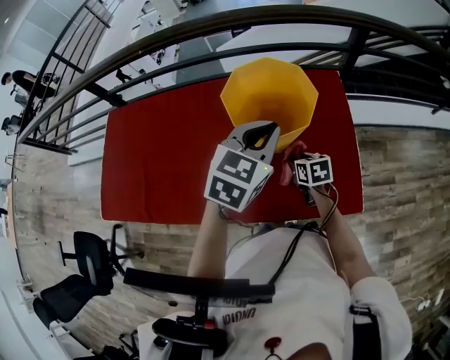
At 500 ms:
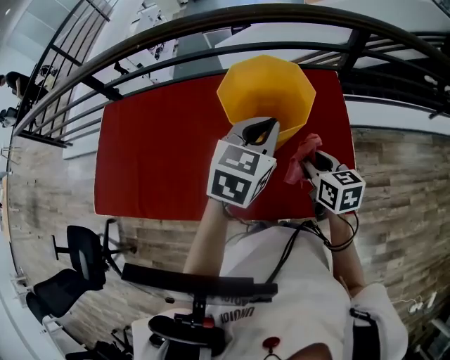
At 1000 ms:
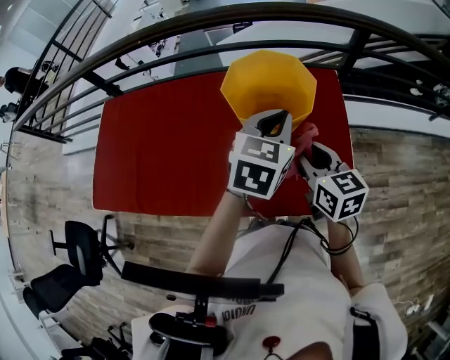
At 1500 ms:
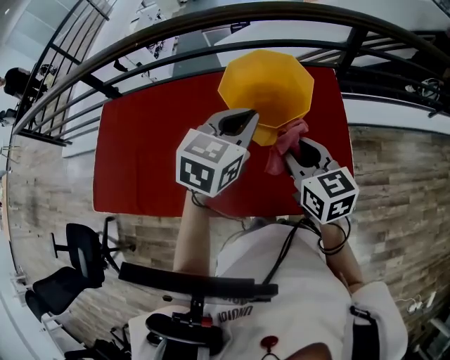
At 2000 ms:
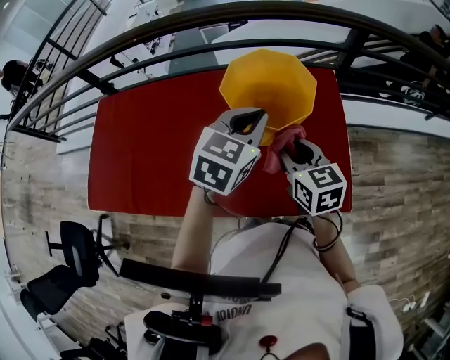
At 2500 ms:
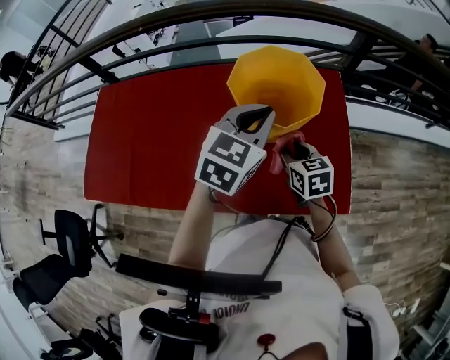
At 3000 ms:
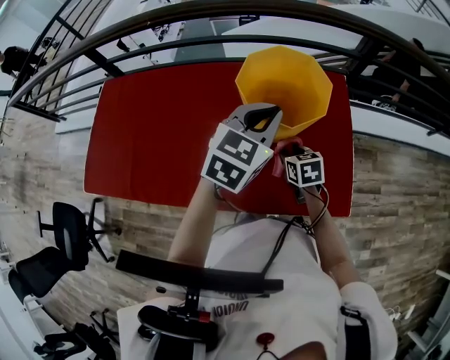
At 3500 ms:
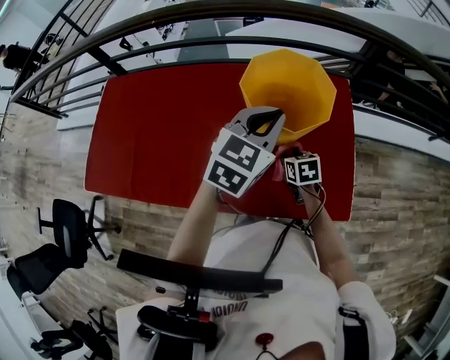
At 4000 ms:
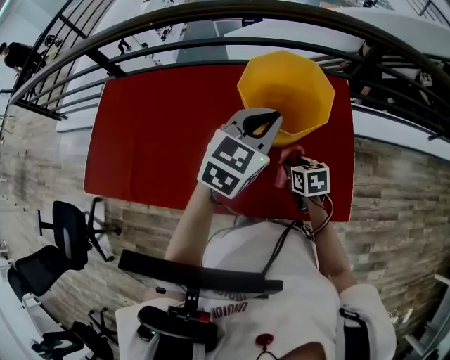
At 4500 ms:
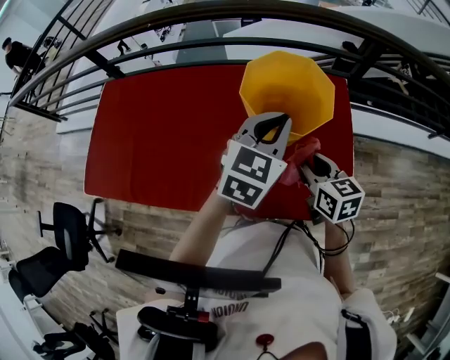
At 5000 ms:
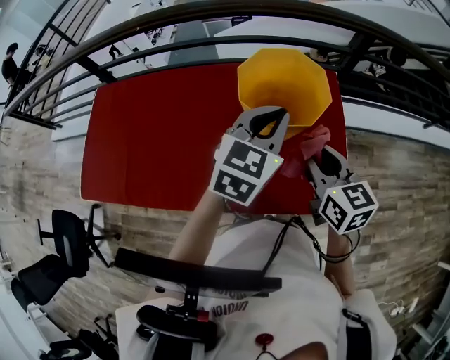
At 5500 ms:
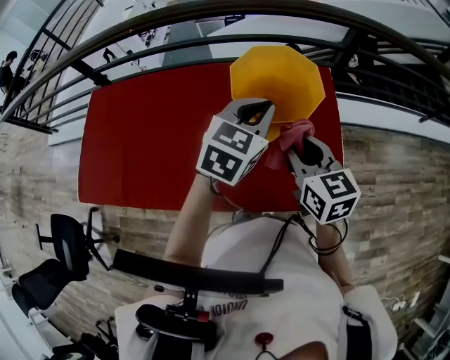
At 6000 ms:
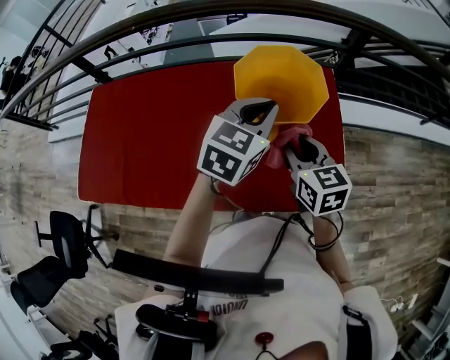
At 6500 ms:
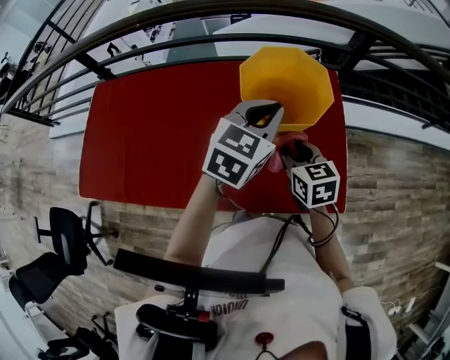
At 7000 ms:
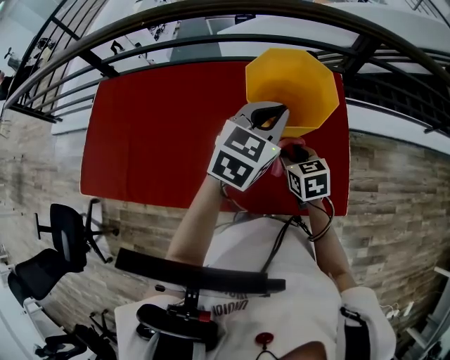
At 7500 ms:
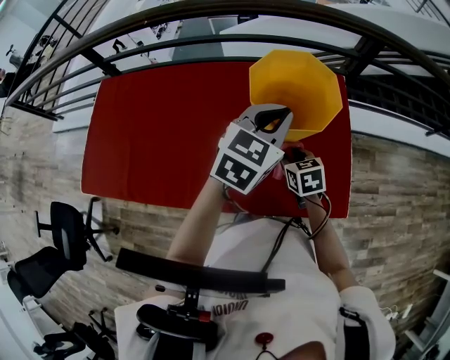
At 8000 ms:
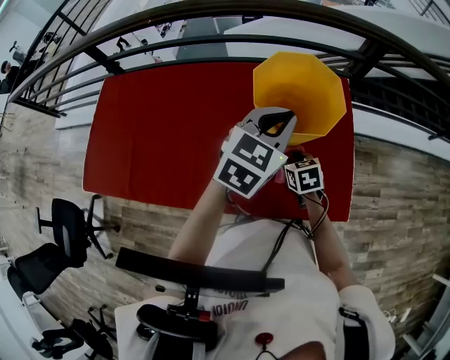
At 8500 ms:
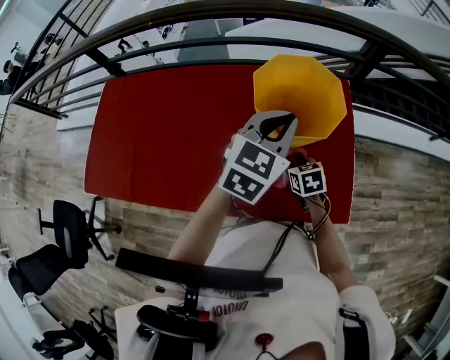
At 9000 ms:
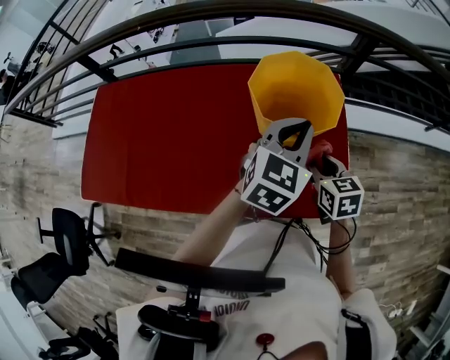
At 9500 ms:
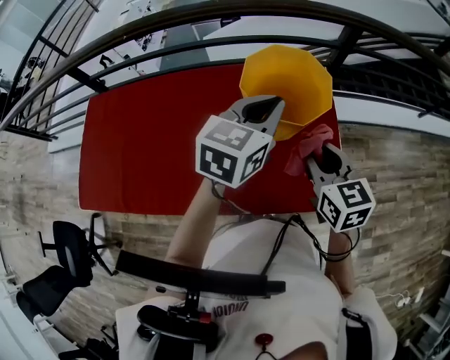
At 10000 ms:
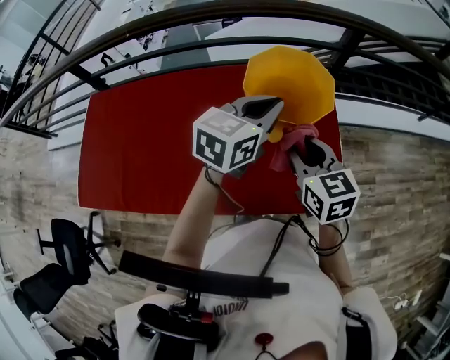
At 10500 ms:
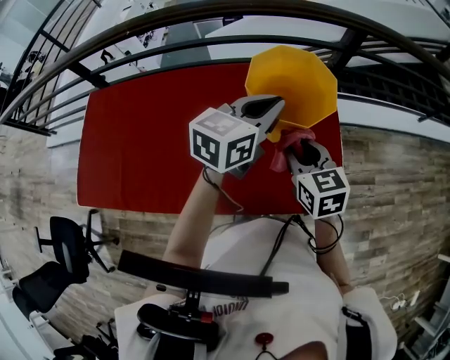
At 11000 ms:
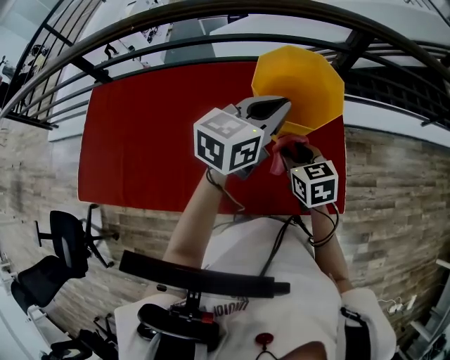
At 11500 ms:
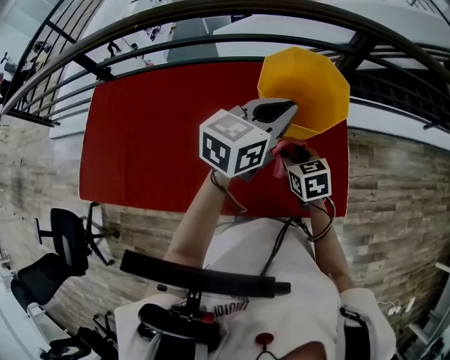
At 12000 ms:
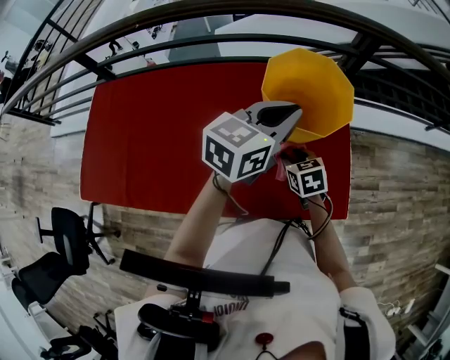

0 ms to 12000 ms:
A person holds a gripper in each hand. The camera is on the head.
0 ms to 2000 ms: The right gripper moves upward, about 20 cm, and changes its angle by approximately 30 degrees.
2000 ms to 4000 ms: The right gripper shifts some 20 cm downward, and swivels about 20 degrees.
4000 ms to 6000 ms: The right gripper goes some 20 cm upward, and turns by some 30 degrees.
6000 ms to 8000 ms: The right gripper is displaced downward by about 20 cm, and rotates about 30 degrees.
8000 ms to 10000 ms: The right gripper heads upward, covering roughly 20 cm, and rotates some 30 degrees.
10000 ms to 12000 ms: The right gripper shifts approximately 20 cm downward, and changes its angle by some 20 degrees.

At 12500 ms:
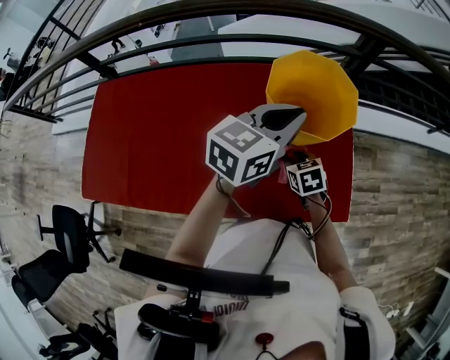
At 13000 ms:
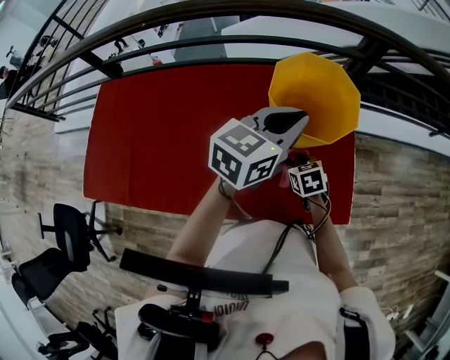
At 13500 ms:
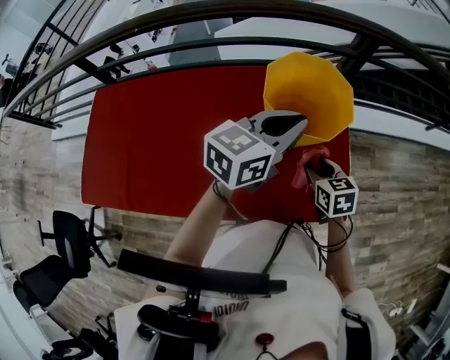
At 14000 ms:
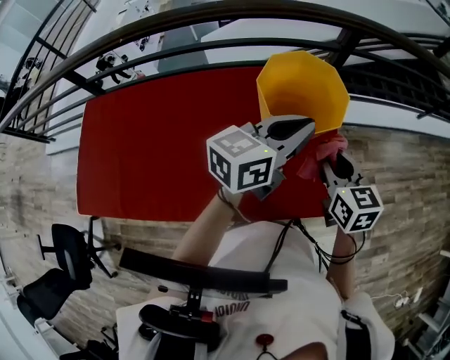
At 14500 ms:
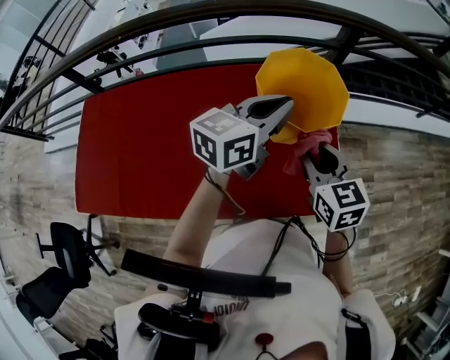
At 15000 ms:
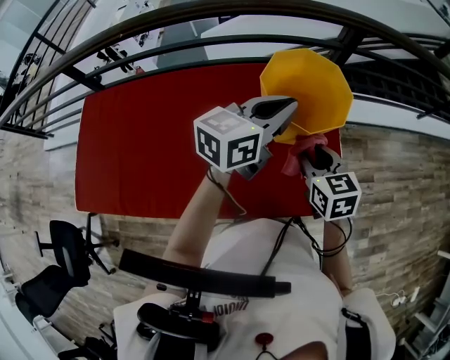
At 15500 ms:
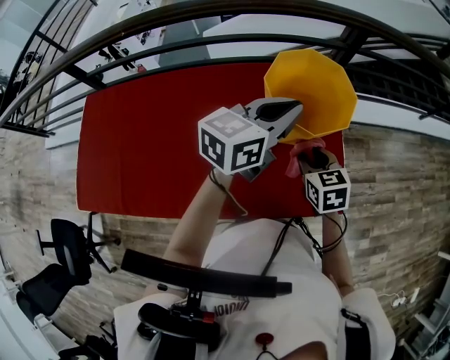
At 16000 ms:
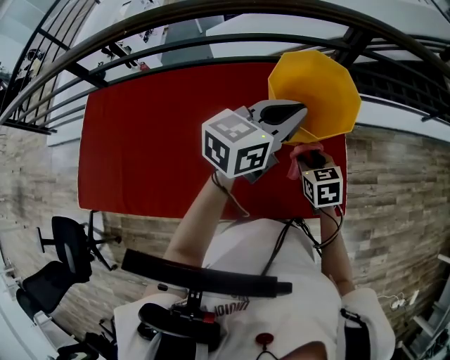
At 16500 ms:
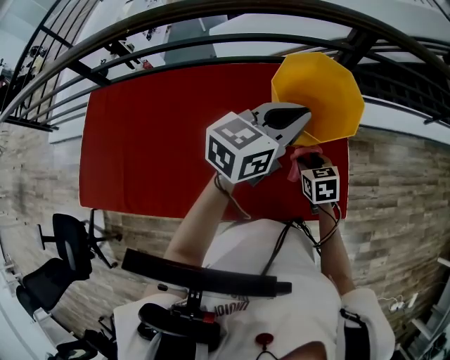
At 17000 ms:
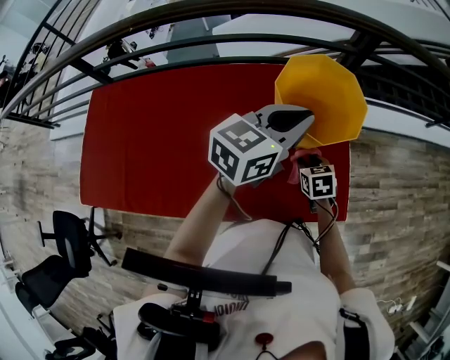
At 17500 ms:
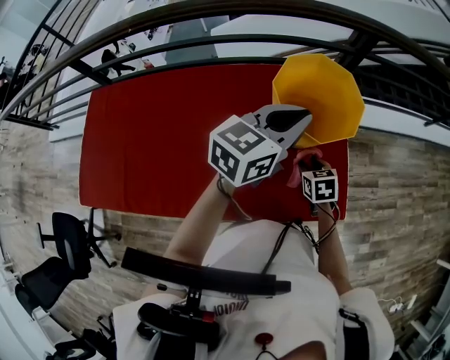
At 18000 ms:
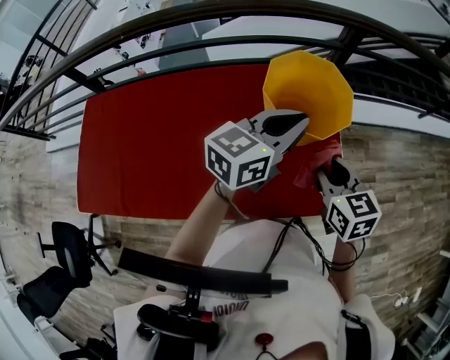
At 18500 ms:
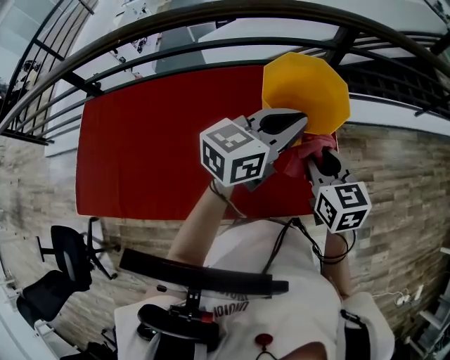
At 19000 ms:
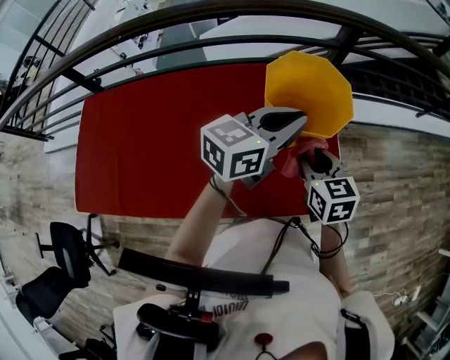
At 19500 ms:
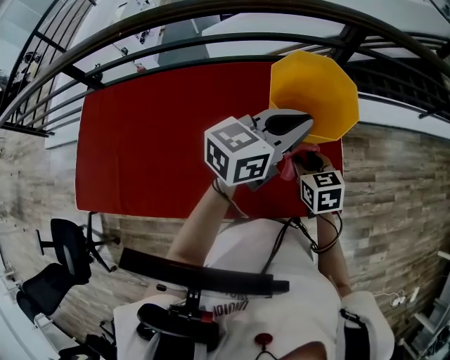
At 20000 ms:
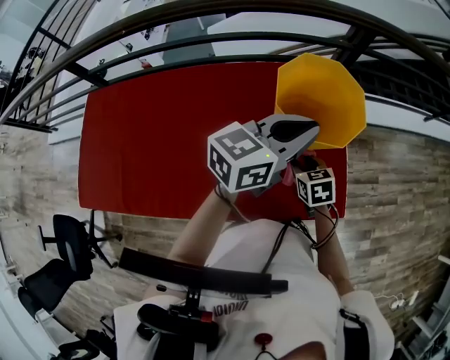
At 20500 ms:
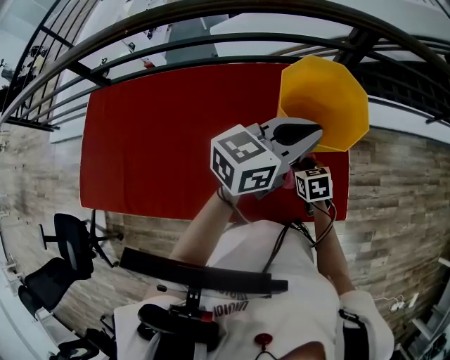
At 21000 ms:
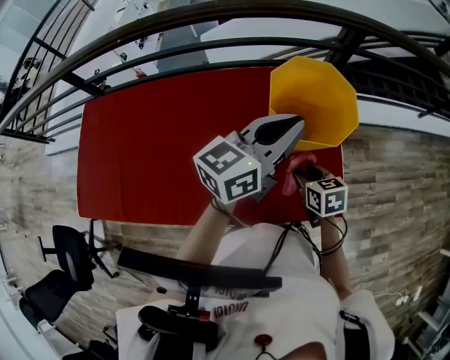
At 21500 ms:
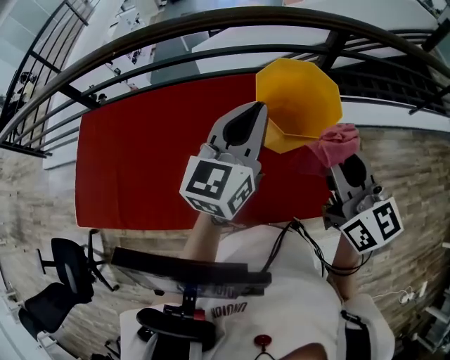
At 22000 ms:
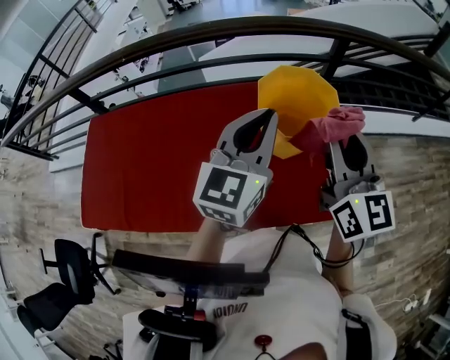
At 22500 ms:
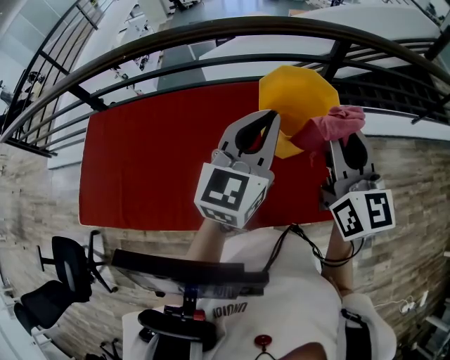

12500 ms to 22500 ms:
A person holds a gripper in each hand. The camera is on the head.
12500 ms to 14500 ms: The right gripper is displaced upward by approximately 20 cm, and rotates roughly 30 degrees.
14500 ms to 16500 ms: The right gripper moves downward, approximately 15 cm, and swivels approximately 20 degrees.
16500 ms to 18500 ms: The right gripper shifts roughly 15 cm upward, and rotates about 20 degrees.
18500 ms to 20500 ms: The right gripper is displaced downward by about 20 cm, and changes its angle by some 30 degrees.
20500 ms to 22500 ms: The right gripper shifts roughly 40 cm upward, and points its fingers some 60 degrees further upward. Meanwhile the left gripper moves upward, roughly 5 cm, and swivels some 40 degrees.

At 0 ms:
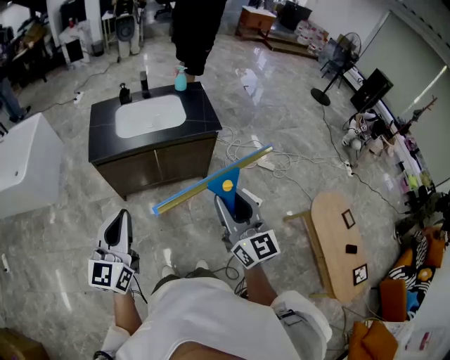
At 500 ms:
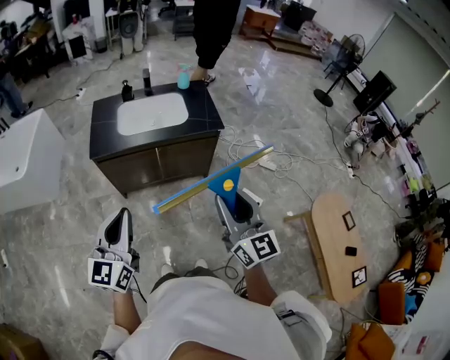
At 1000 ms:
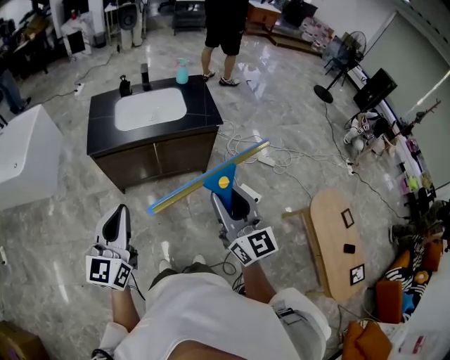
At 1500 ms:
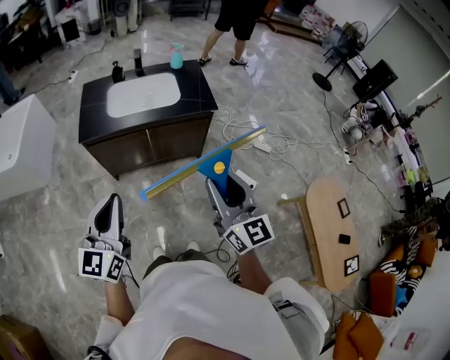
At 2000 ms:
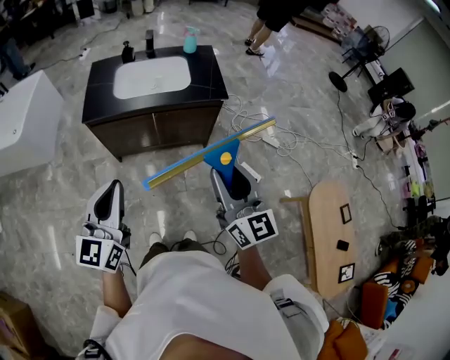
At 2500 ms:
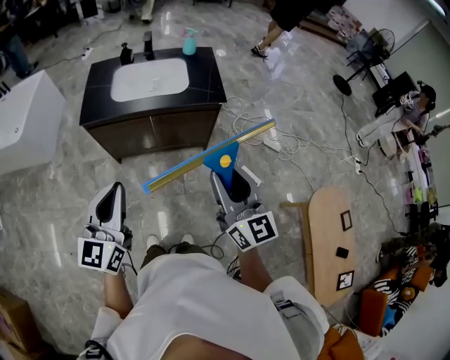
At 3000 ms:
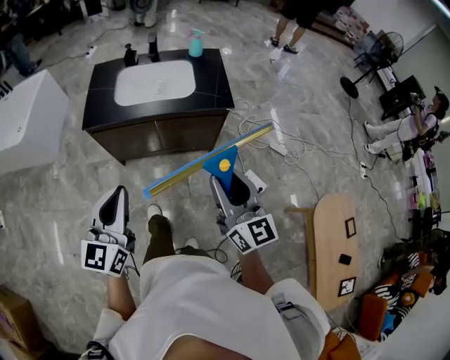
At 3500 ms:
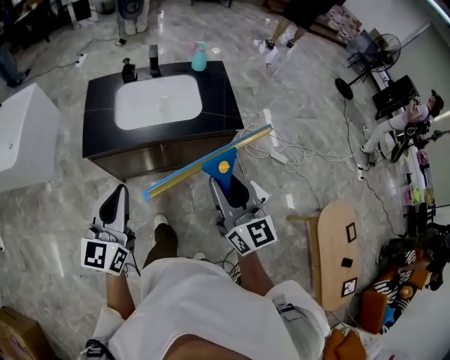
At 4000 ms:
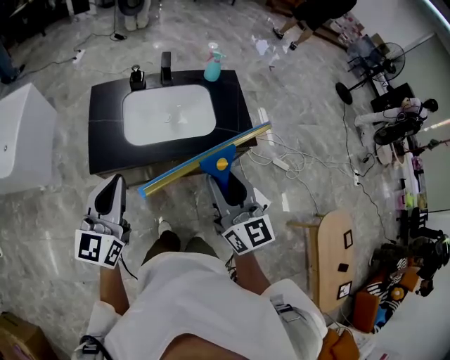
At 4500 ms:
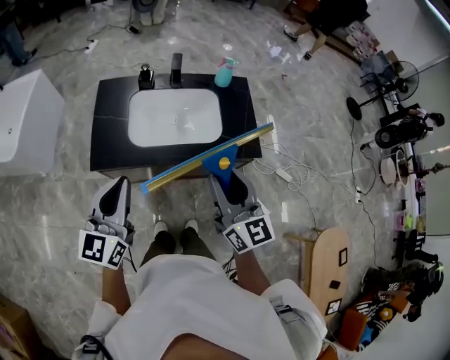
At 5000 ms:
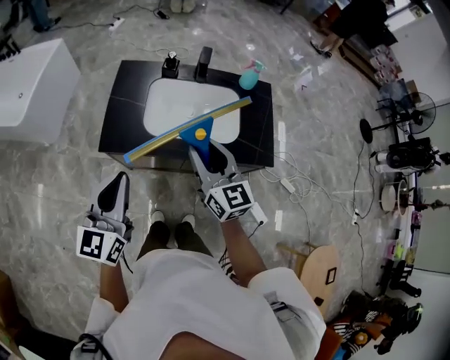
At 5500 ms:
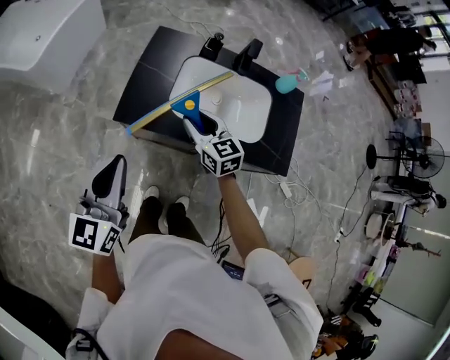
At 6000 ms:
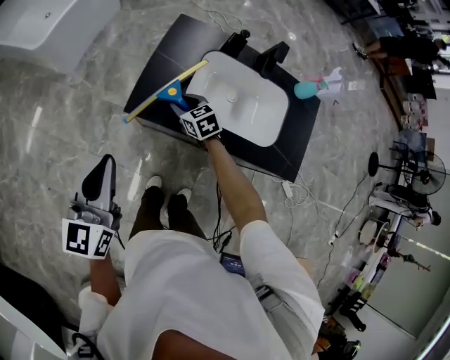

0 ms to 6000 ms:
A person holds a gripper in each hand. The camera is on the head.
0 ms to 2000 ms: The right gripper changes place by approximately 5 cm.
2000 ms to 4000 ms: The right gripper heads forward and to the left, covering about 35 cm, while the left gripper shifts approximately 35 cm forward.
4000 ms to 6000 ms: The left gripper ends up some 20 cm from where it was, and rotates approximately 30 degrees, while the right gripper ends up about 50 cm from where it was, and angles its fingers downward, by approximately 40 degrees.
